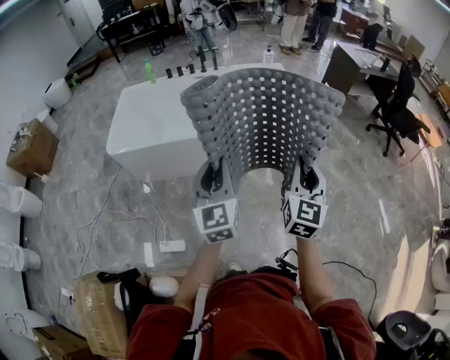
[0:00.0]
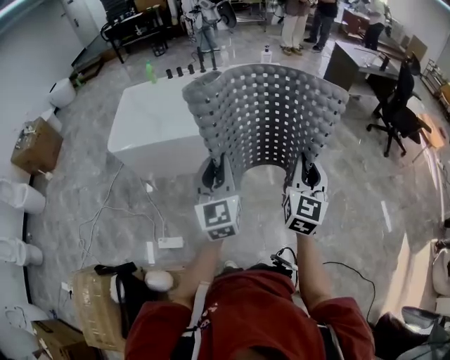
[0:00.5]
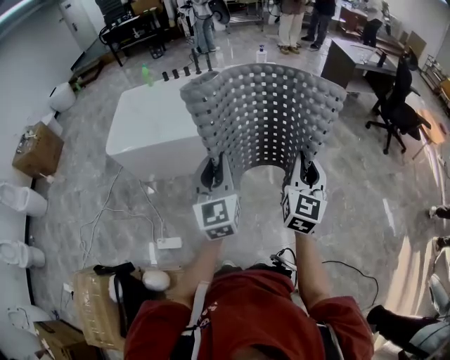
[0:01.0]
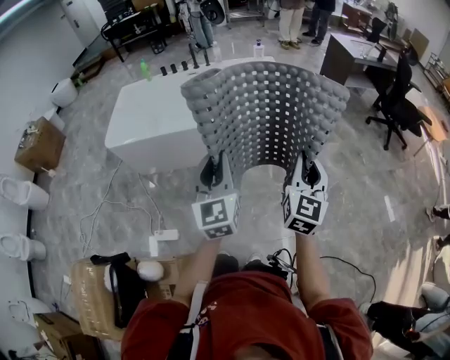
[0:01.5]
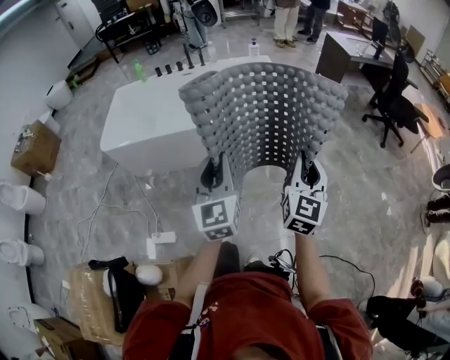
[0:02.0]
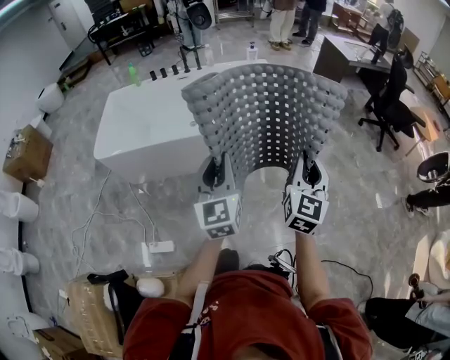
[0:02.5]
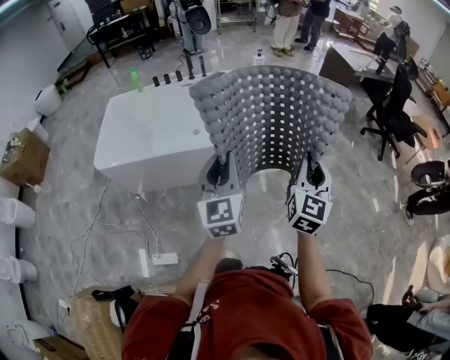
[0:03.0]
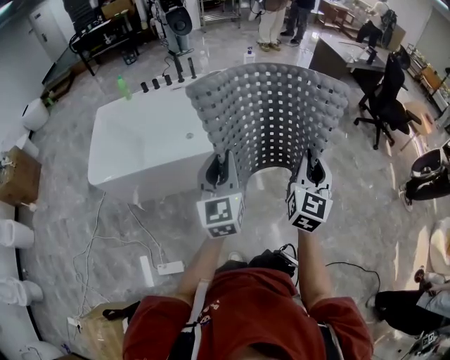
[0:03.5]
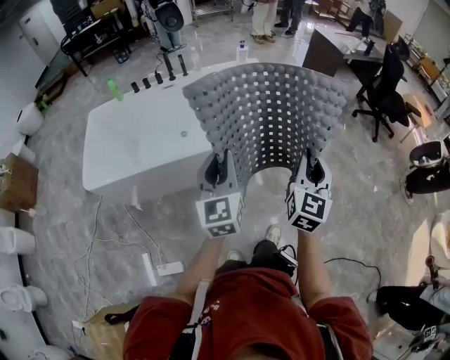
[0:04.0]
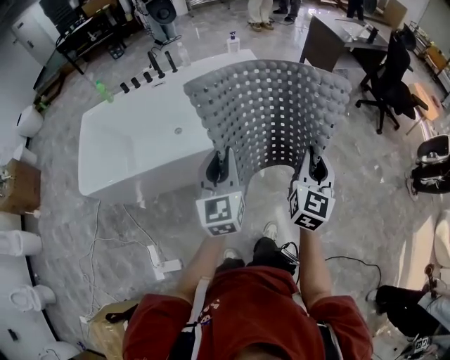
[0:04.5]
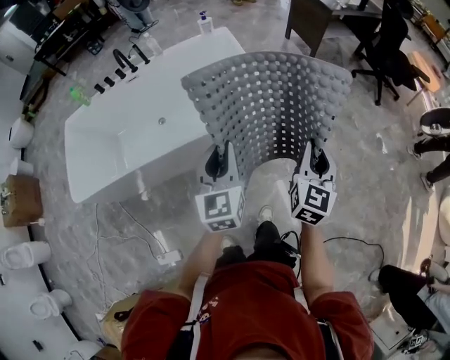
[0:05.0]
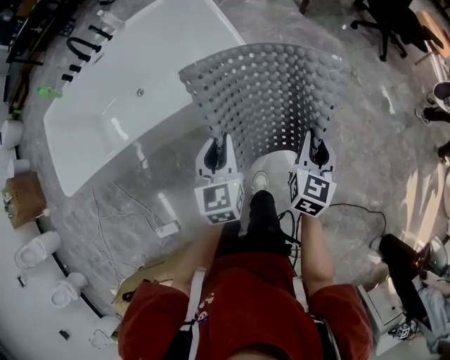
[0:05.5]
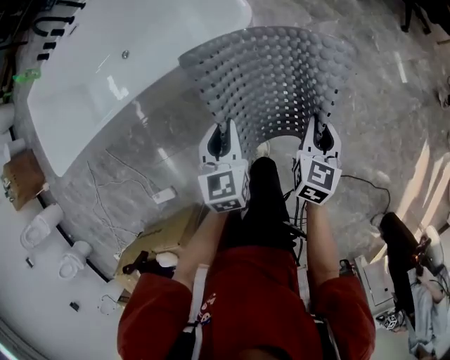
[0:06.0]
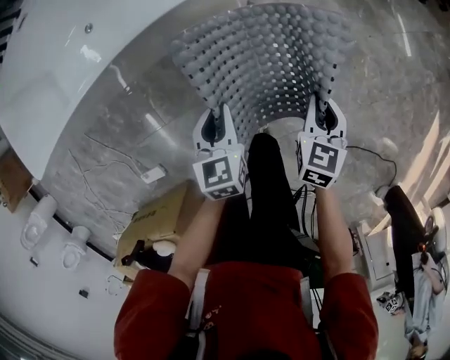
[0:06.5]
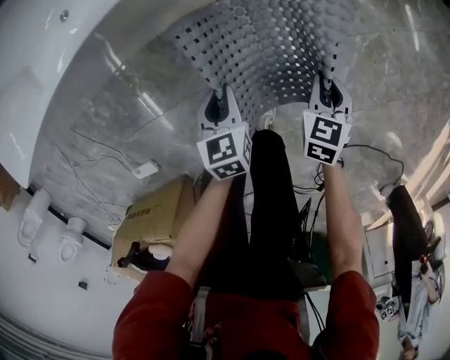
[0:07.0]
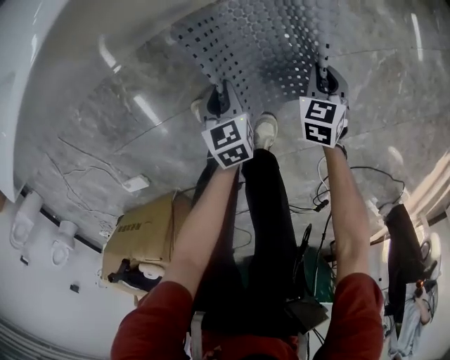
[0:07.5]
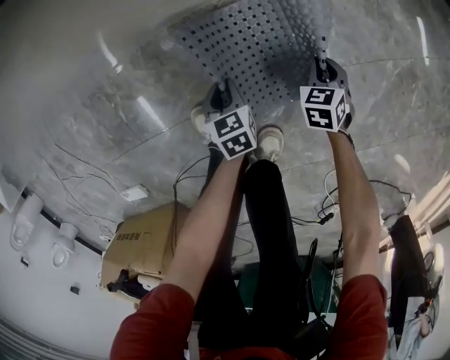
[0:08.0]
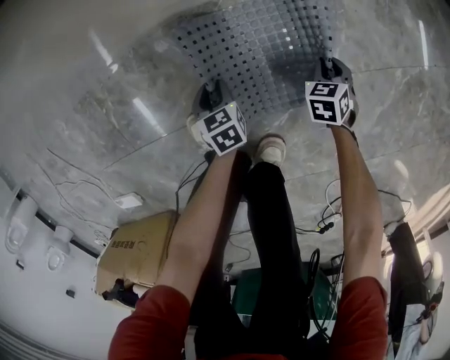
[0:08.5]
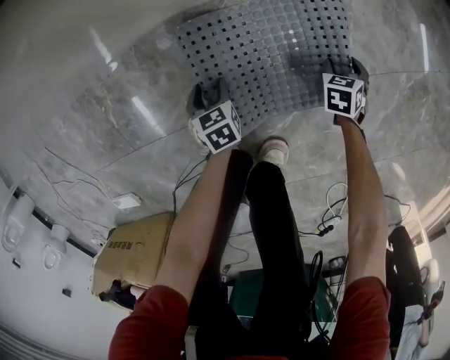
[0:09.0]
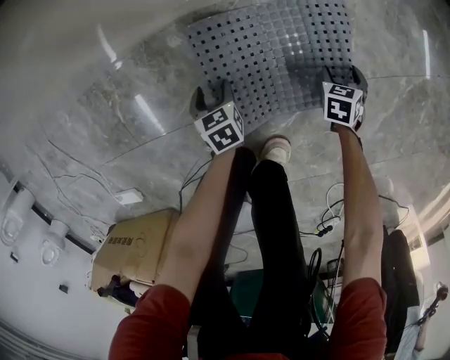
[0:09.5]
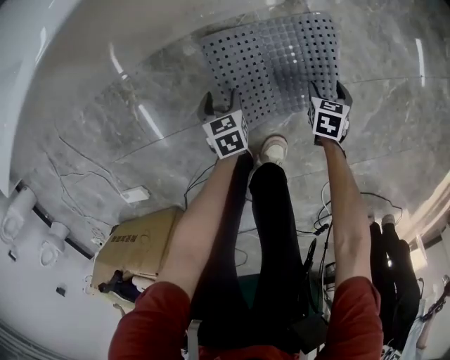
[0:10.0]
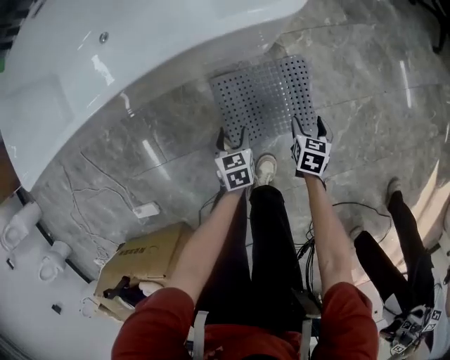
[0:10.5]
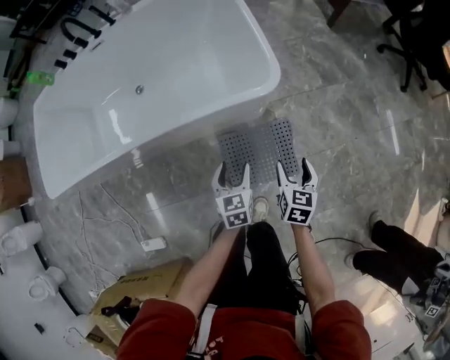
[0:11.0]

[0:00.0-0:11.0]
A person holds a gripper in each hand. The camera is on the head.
0:00.0 to 0:02.0: The two grippers go approximately 15 cm to the right.
0:02.0 to 0:03.5: Both grippers move forward and to the left, roughly 20 cm.
0:03.5 to 0:05.5: The two grippers go some 40 cm to the right, downward and forward. The right gripper swivels approximately 30 degrees. Meanwhile the left gripper changes its angle by roughly 30 degrees.
0:05.5 to 0:07.5: The grippers both shift downward by about 70 cm. The right gripper tilts its fingers roughly 30 degrees downward. The left gripper swivels roughly 30 degrees.
0:07.5 to 0:09.0: The left gripper travels downward and to the left by approximately 10 cm, and opens up, while the right gripper heads downward and to the right, covering approximately 10 cm, and opens its fingers.
0:09.0 to 0:11.0: The two grippers go roughly 50 cm upward. The left gripper swivels approximately 20 degrees. The right gripper turns by approximately 40 degrees.

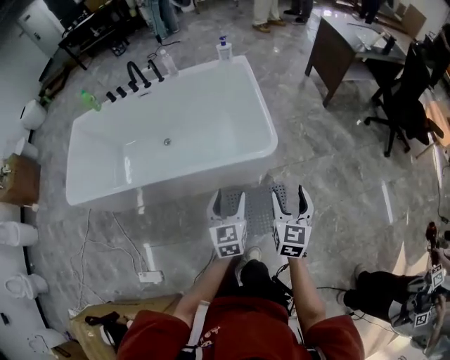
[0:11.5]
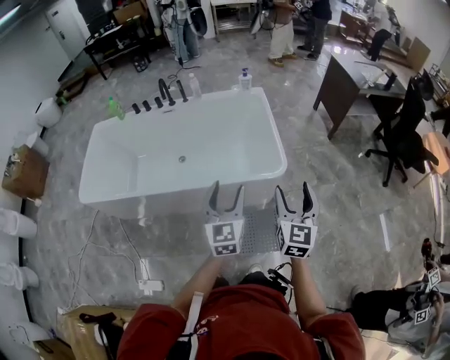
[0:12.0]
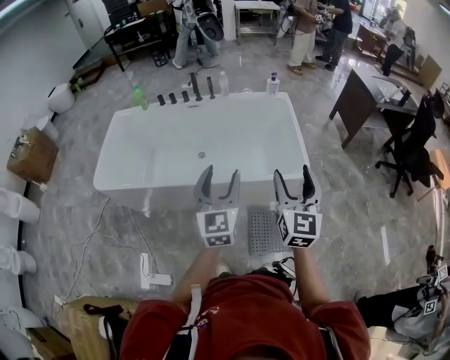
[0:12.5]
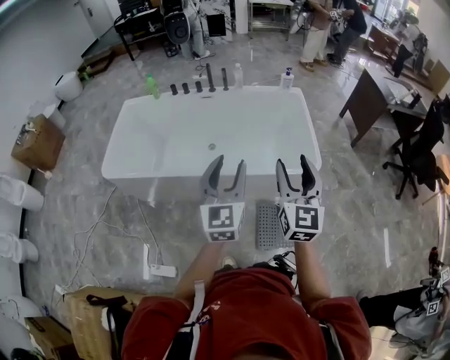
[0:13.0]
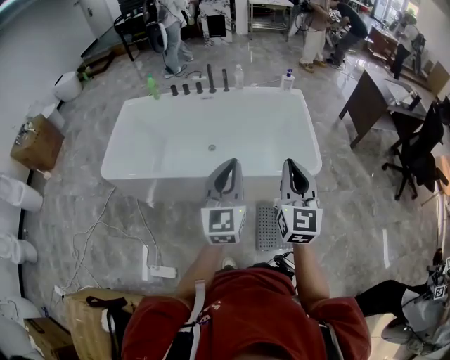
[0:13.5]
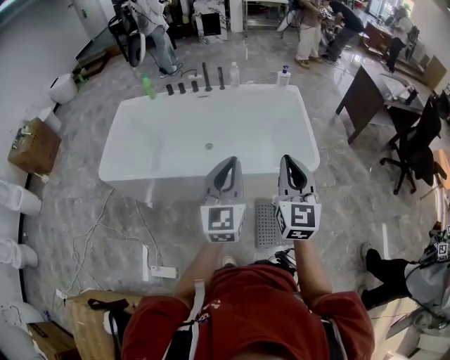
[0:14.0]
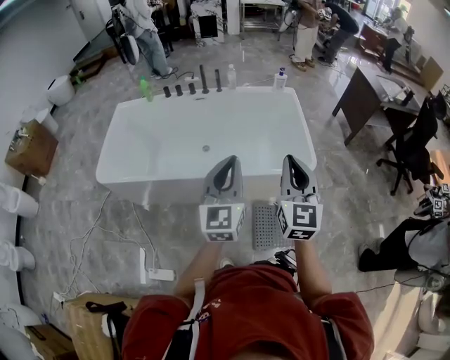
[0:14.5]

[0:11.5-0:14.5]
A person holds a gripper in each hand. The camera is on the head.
0:11.5 to 0:13.0: Both grippers travel together to the left and upward, about 35 cm. The right gripper swivels roughly 30 degrees. The left gripper changes its angle by approximately 20 degrees.
0:13.0 to 0:14.5: The right gripper closes up. The left gripper closes.

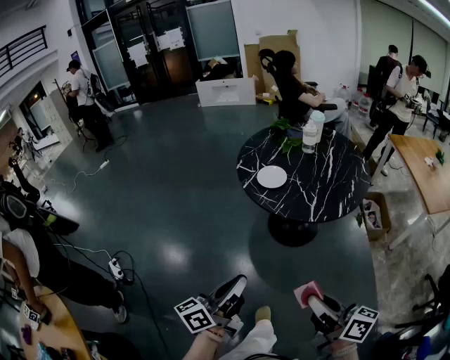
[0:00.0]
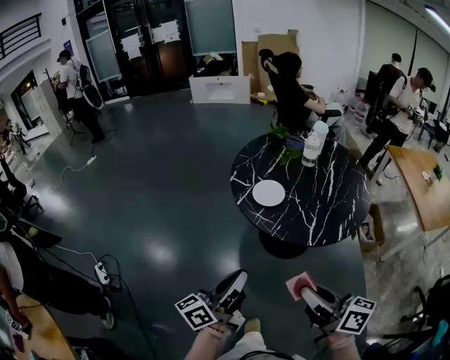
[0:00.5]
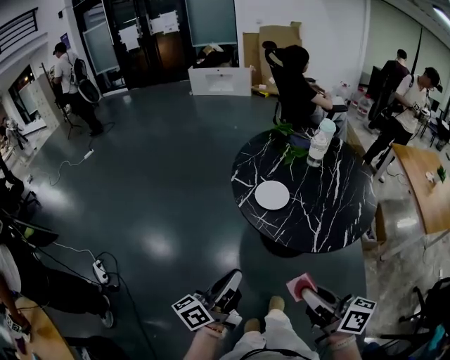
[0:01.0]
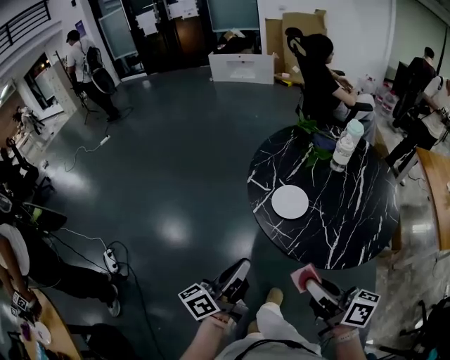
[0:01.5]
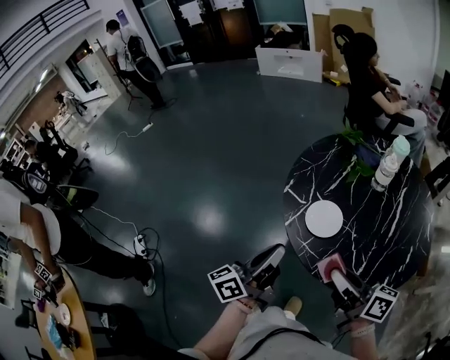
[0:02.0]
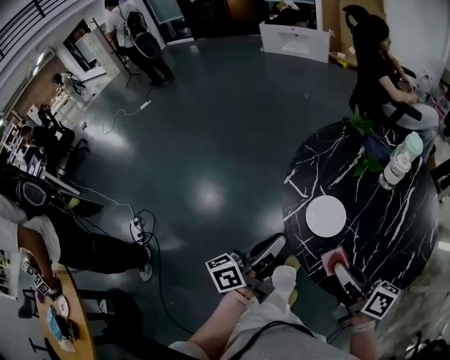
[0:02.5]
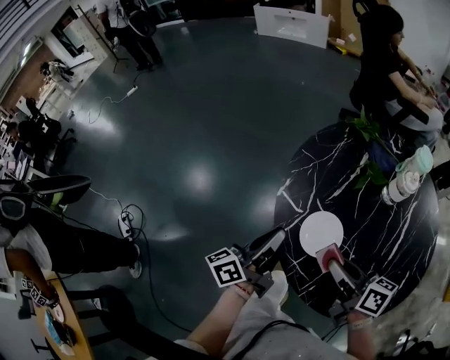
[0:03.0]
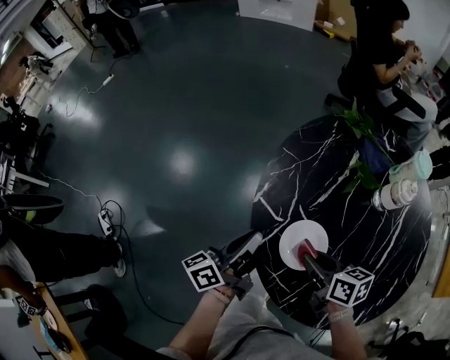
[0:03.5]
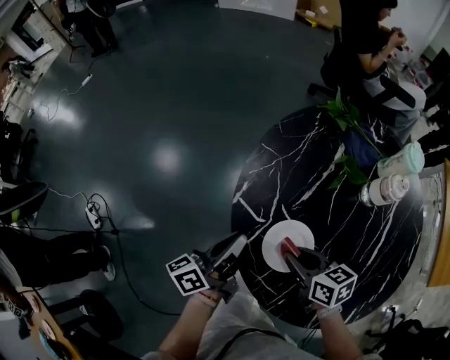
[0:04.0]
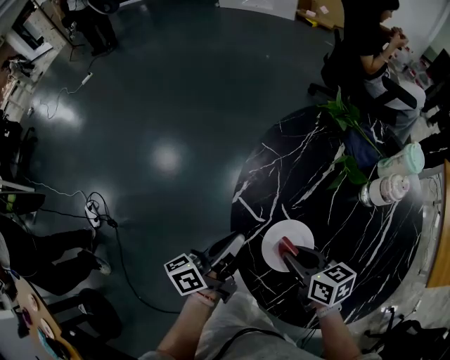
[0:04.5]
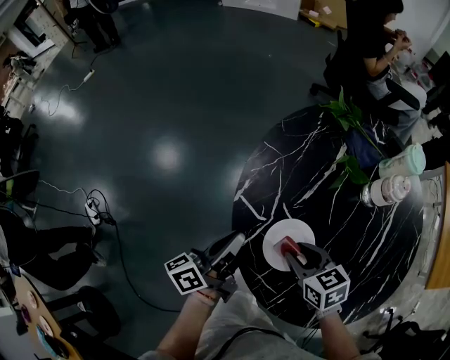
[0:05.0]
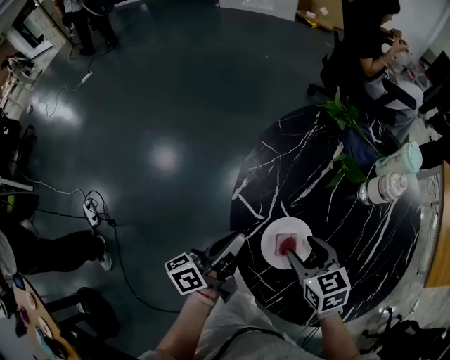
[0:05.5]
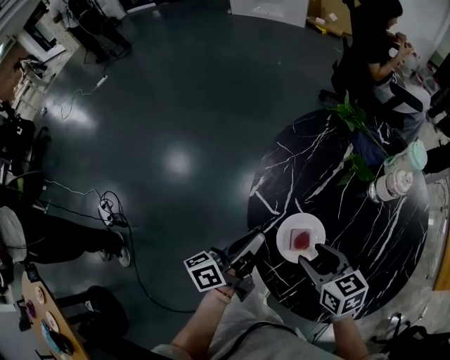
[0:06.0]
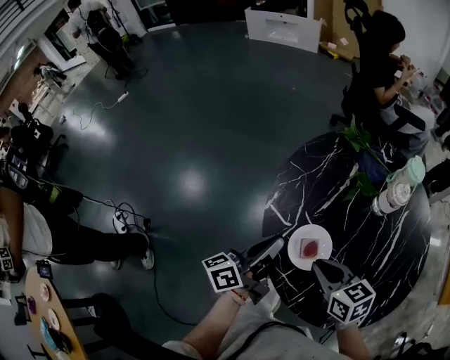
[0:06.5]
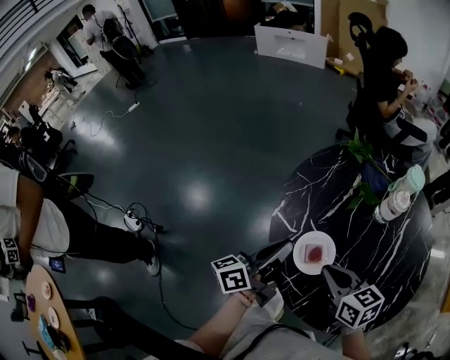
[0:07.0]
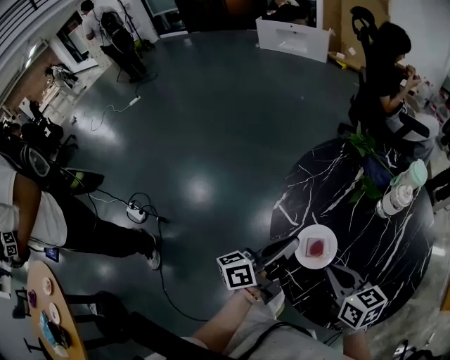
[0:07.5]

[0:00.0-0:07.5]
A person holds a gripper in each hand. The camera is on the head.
0:00.0 to 0:02.0: The grippers both shift forward by some 40 cm.
0:02.0 to 0:04.0: Both grippers travel together forward and downward, about 25 cm. The right gripper angles its fingers downward, by approximately 30 degrees.
0:04.0 to 0:05.5: The right gripper changes its angle by roughly 20 degrees, and opens up.
0:05.5 to 0:07.5: The right gripper travels upward and backward by some 10 cm, and closes its fingers. The left gripper travels upward by approximately 10 cm.

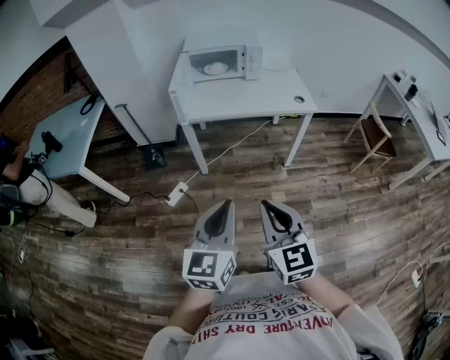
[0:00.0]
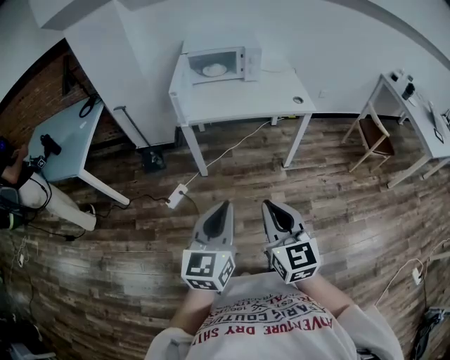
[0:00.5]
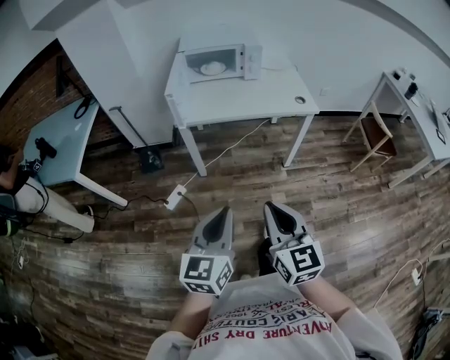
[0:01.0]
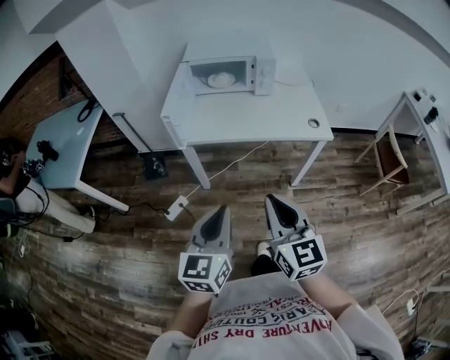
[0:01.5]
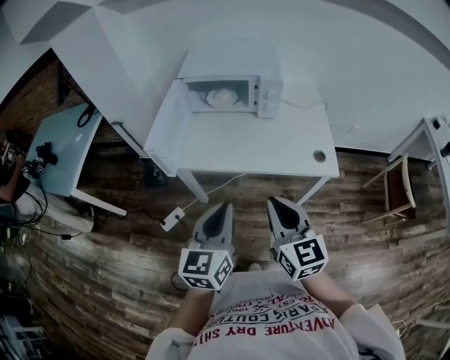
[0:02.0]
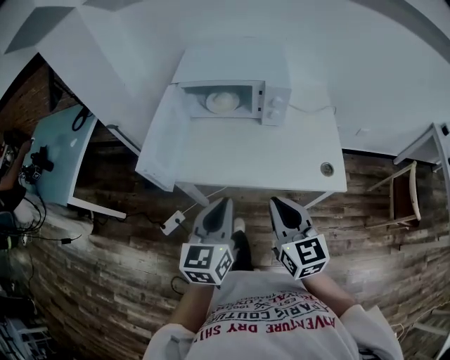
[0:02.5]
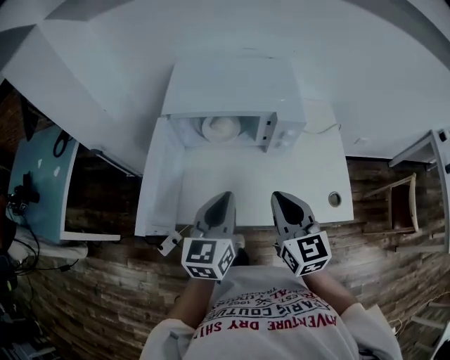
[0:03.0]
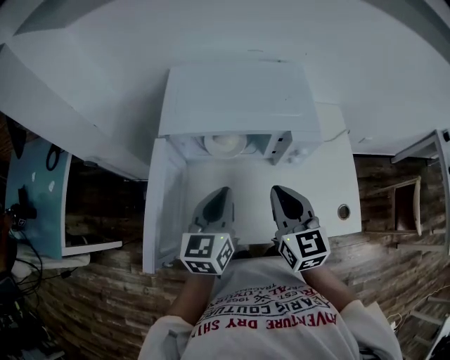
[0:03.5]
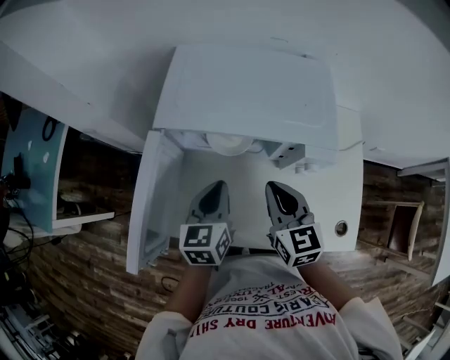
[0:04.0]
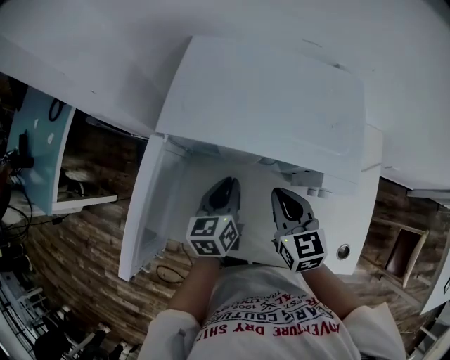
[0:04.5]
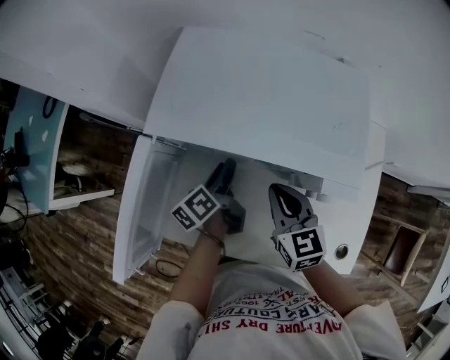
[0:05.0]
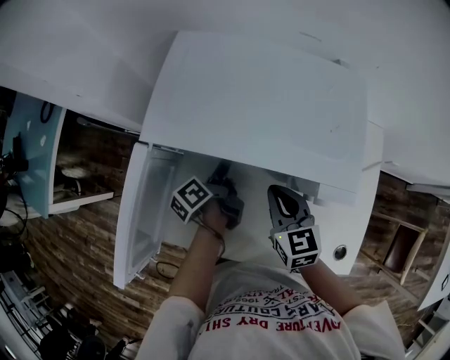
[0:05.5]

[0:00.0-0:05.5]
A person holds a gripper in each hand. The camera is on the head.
0:00.0 to 0:02.0: Both grippers move forward, approximately 35 cm.
0:02.0 to 0:03.5: Both grippers move forward, approximately 40 cm.
0:03.5 to 0:05.5: The grippers both shift downward and forward by about 20 cm. The left gripper rotates around the line of its fingers by roughly 70 degrees, counterclockwise from behind, and opens, while the right gripper swivels about 20 degrees.
